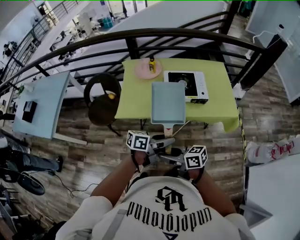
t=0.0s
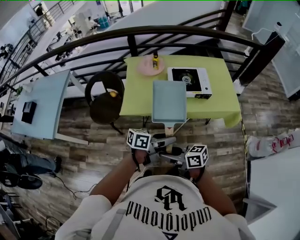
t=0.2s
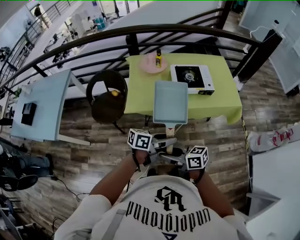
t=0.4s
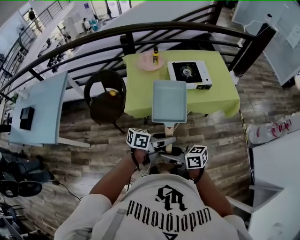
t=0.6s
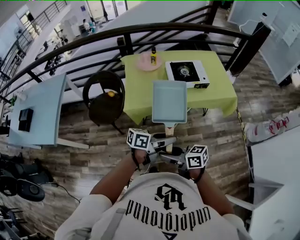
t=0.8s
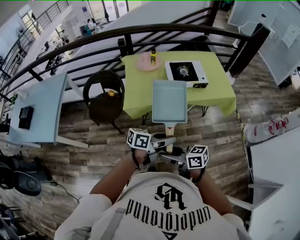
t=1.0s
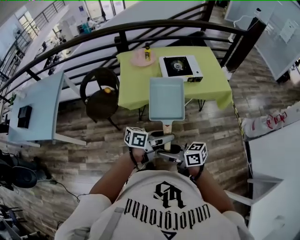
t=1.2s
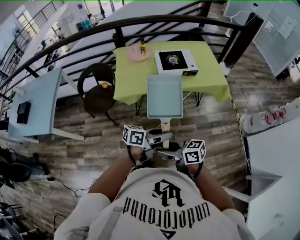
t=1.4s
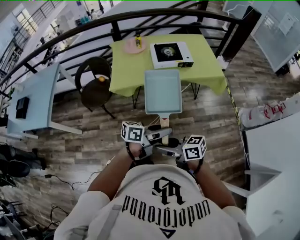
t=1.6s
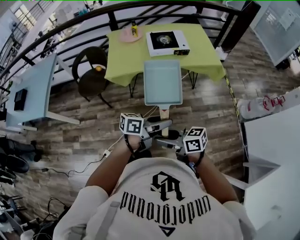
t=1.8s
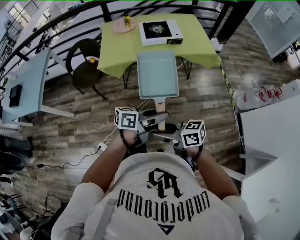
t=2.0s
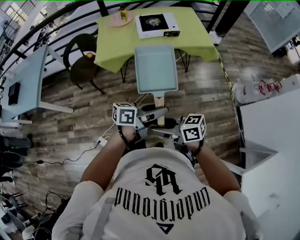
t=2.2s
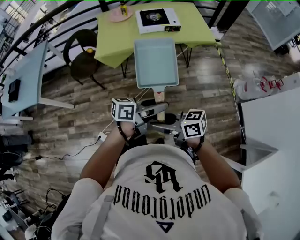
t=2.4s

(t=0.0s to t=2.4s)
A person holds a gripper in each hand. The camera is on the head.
t=0.0s - t=1.2s: The left gripper ends up roughly 20 cm from where it was. The right gripper moves approximately 20 cm.
t=1.2s - t=2.4s: The left gripper moves about 20 cm. Meanwhile the right gripper changes place by approximately 20 cm.

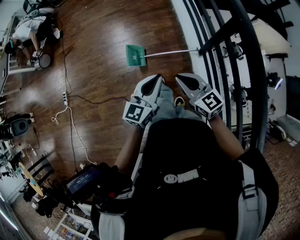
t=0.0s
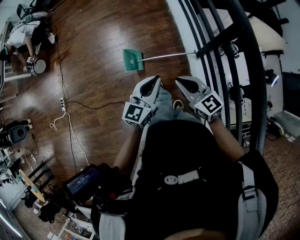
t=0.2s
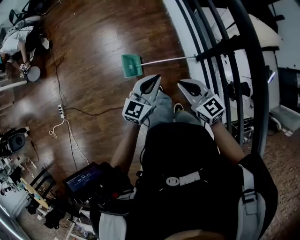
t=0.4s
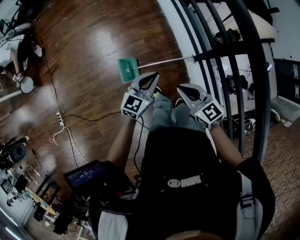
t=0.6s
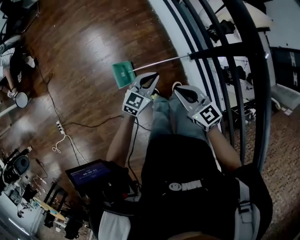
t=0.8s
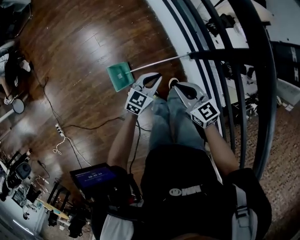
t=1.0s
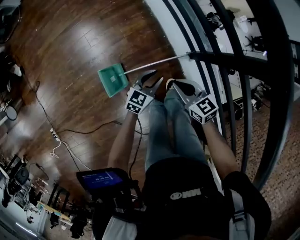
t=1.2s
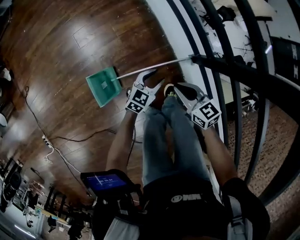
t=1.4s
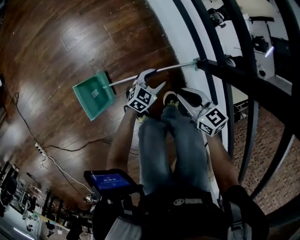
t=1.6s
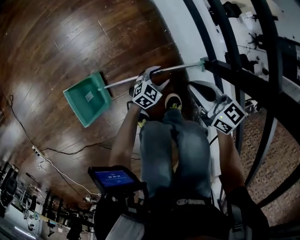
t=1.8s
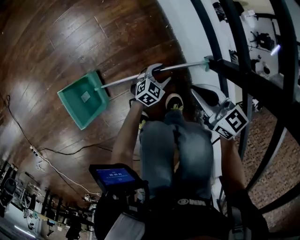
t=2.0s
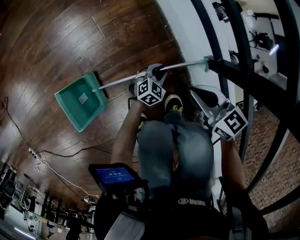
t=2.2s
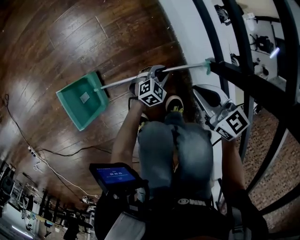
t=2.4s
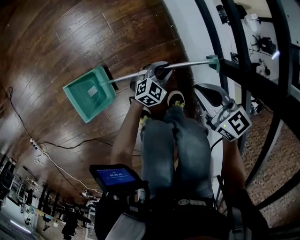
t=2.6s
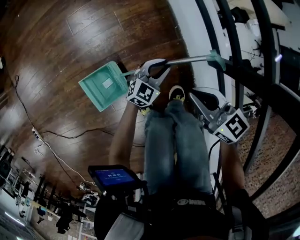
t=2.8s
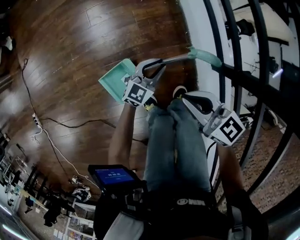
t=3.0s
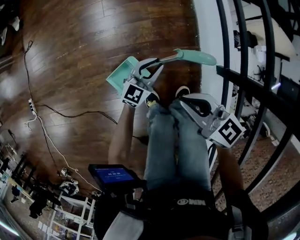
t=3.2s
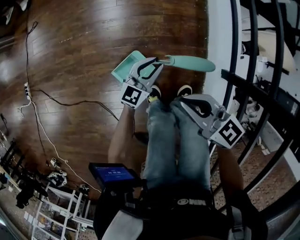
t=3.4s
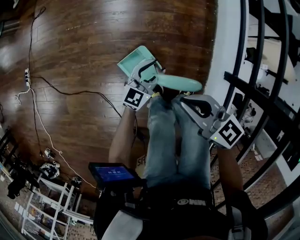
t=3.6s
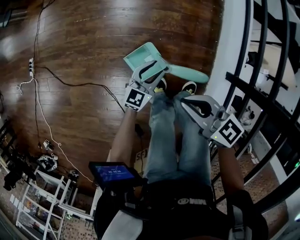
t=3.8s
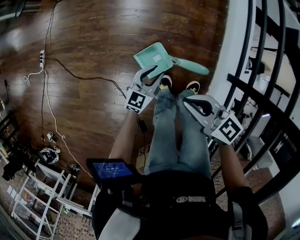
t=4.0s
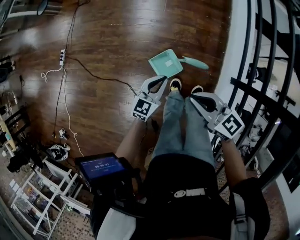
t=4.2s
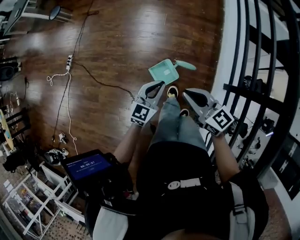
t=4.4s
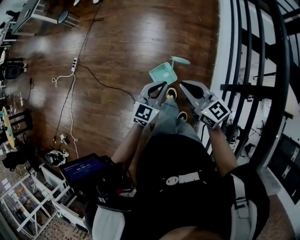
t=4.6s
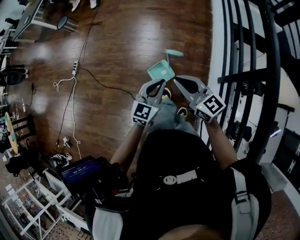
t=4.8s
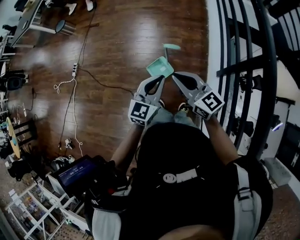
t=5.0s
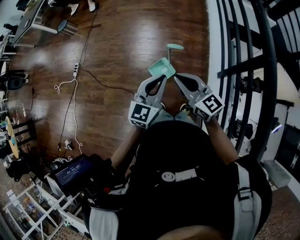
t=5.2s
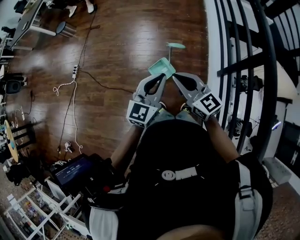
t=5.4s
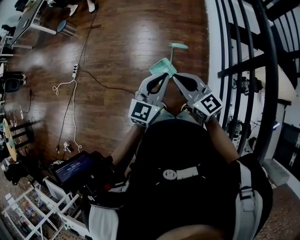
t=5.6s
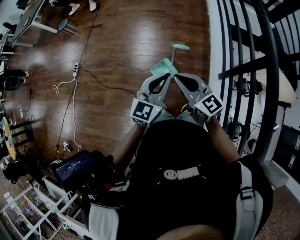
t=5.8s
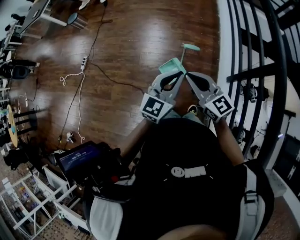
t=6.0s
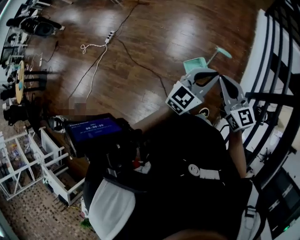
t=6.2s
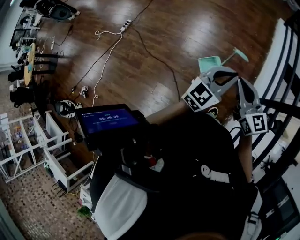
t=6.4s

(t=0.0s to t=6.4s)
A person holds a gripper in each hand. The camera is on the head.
t=0.0s - t=1.6s: Both grippers move downward and forward, some 60 cm. The left gripper rotates approximately 50 degrees, and opens its fingers. Meanwhile the right gripper changes its angle by roughly 30 degrees.
t=1.6s - t=3.2s: The right gripper heads upward, covering about 15 cm, and swivels approximately 30 degrees. Meanwhile the left gripper shifts by approximately 20 cm, turns by some 30 degrees, and closes.
t=3.2s - t=4.8s: The right gripper goes roughly 35 cm upward and to the left; the left gripper moves upward, backward and to the left, roughly 50 cm, and changes its angle by about 20 degrees.
t=4.8s - t=6.4s: The left gripper shifts roughly 10 cm upward, while the right gripper ends up approximately 5 cm from where it was.

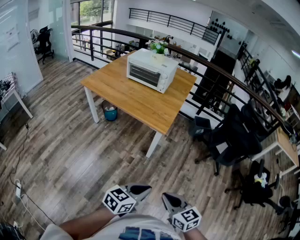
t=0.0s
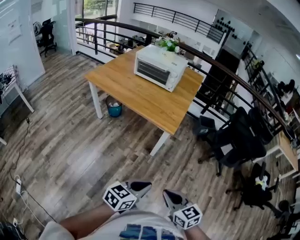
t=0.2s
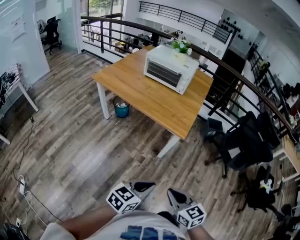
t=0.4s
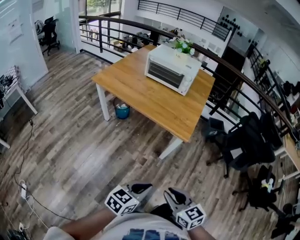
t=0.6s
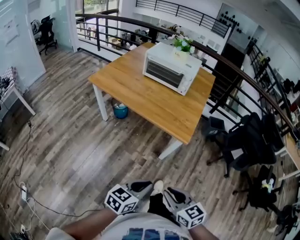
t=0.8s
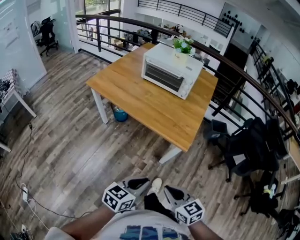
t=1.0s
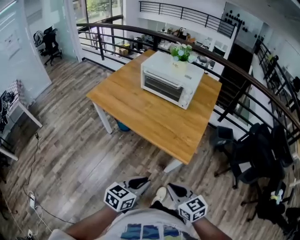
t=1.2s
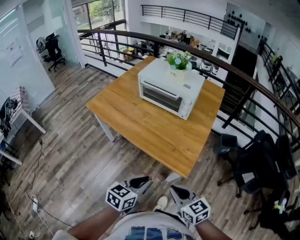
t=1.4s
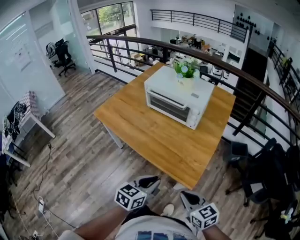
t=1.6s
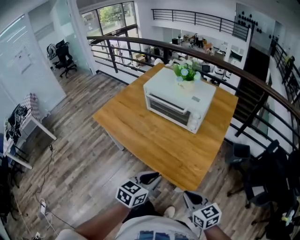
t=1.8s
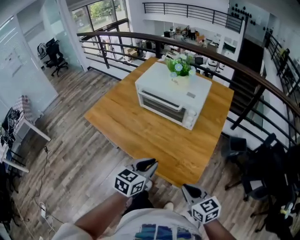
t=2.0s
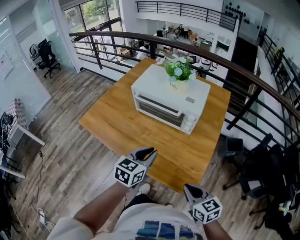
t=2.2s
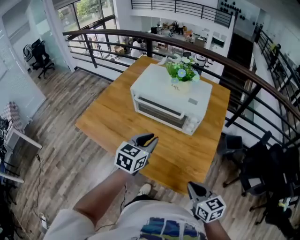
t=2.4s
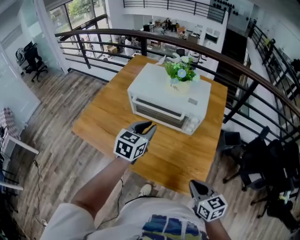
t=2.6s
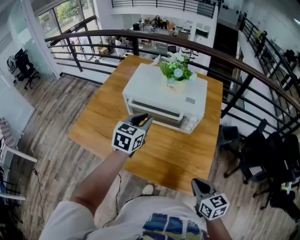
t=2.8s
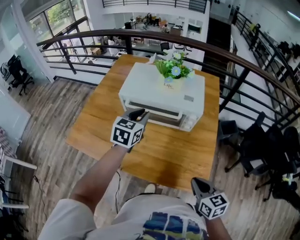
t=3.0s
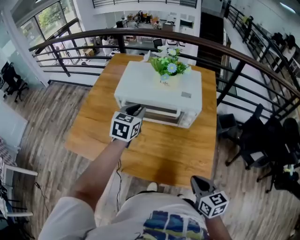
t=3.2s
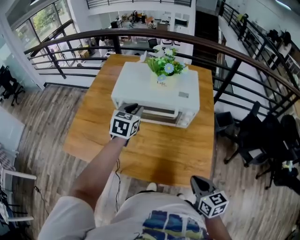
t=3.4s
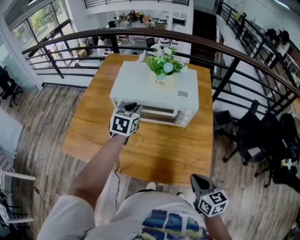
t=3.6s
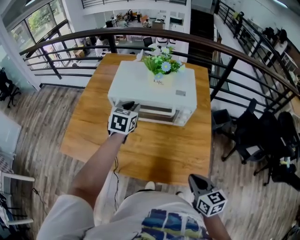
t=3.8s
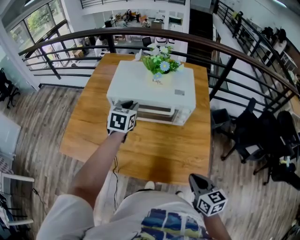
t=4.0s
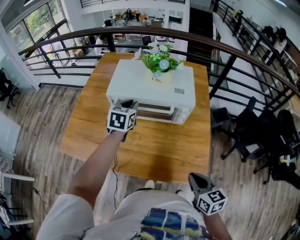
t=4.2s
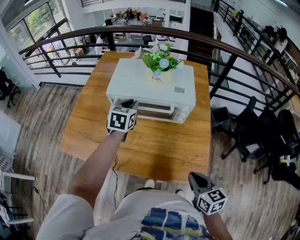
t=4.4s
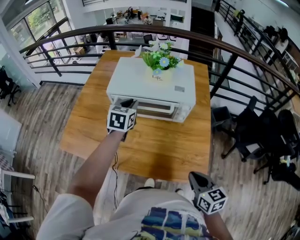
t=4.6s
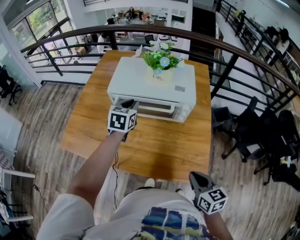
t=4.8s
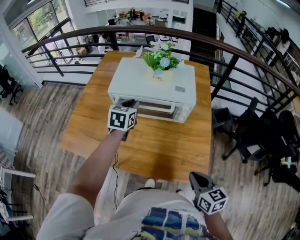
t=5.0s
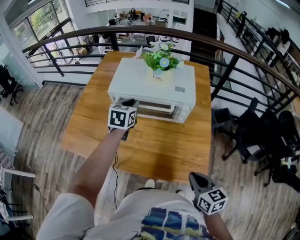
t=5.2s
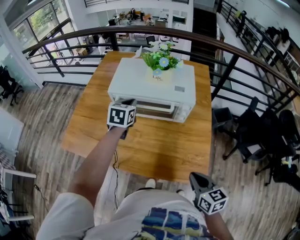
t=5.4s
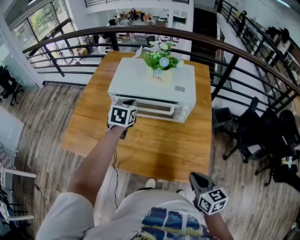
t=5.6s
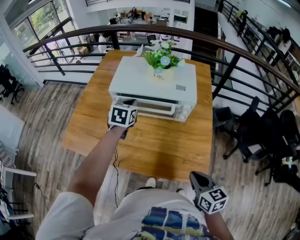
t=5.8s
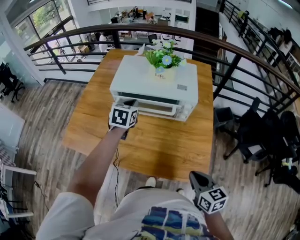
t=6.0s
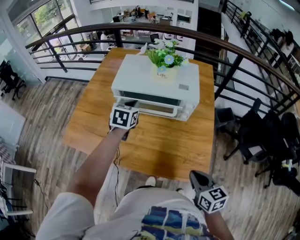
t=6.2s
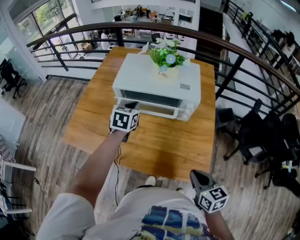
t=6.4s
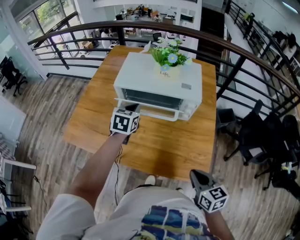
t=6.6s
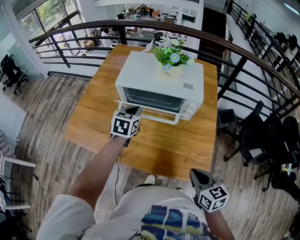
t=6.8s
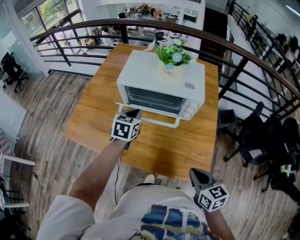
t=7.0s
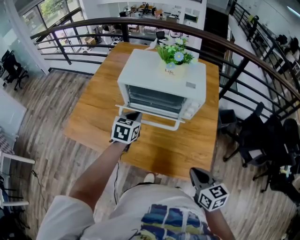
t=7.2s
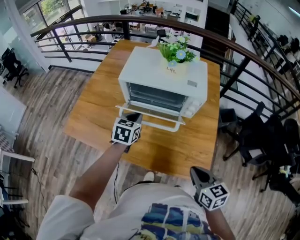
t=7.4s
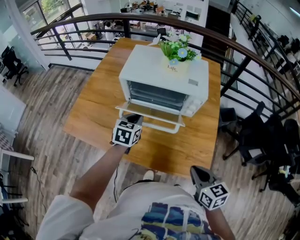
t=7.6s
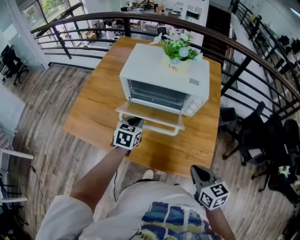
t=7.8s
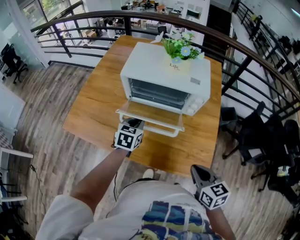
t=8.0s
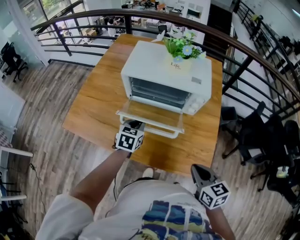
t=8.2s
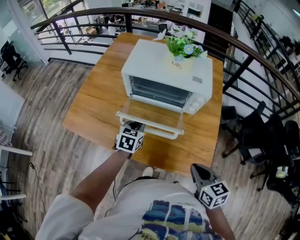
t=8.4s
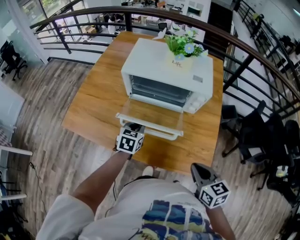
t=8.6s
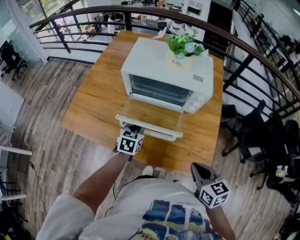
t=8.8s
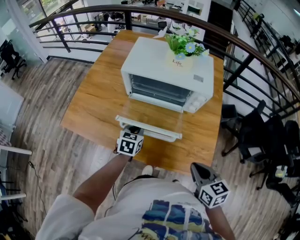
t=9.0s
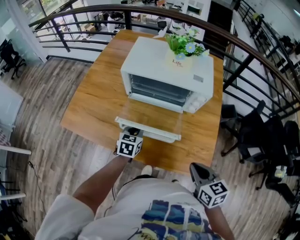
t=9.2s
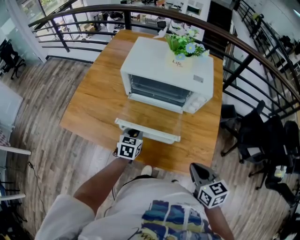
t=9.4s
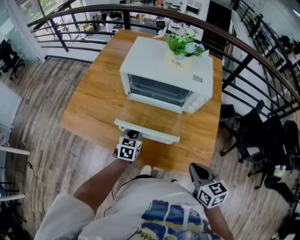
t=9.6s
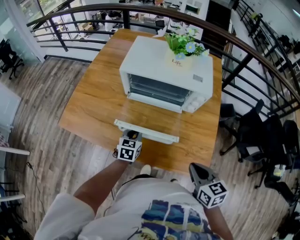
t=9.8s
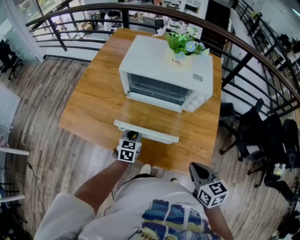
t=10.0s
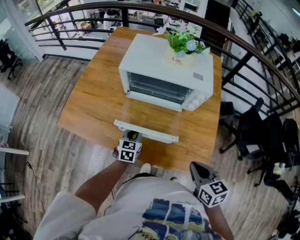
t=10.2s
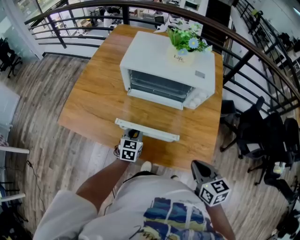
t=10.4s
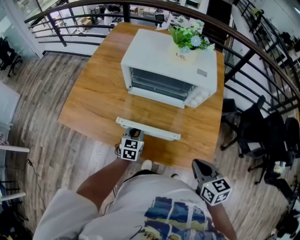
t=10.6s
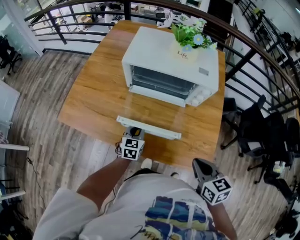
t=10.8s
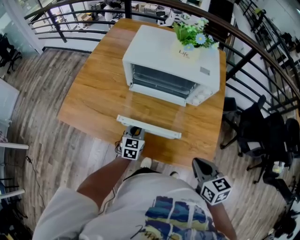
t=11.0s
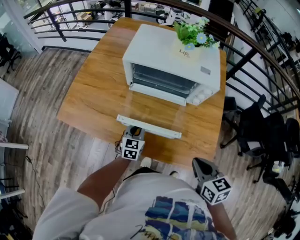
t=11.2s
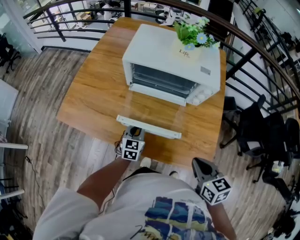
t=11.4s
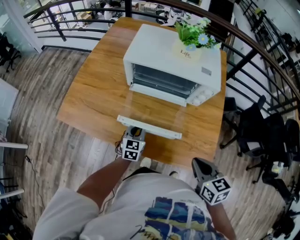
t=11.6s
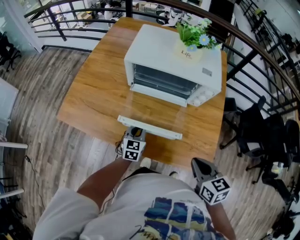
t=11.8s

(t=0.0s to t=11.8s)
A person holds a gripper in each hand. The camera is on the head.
t=0.0s - t=1.4s: Both grippers are carried forward, approximately 40 cm.
t=1.4s - t=3.0s: The right gripper is displaced forward by roughly 25 cm, and turns by some 30 degrees, while the left gripper moves forward, about 50 cm, and rotates approximately 20 degrees.
t=3.0s - t=4.4s: The left gripper shifts about 5 cm forward.
t=4.4s - t=6.0s: The grippers stay close to where they were, moving slightly.
t=6.0s - t=7.4s: The left gripper goes approximately 10 cm backward and downward.
t=7.4s - t=8.8s: The left gripper heads downward and backward, covering roughly 10 cm.
t=8.8s - t=10.4s: The left gripper moves downward, roughly 5 cm.
t=10.4s - t=11.8s: The grippers move only a little.

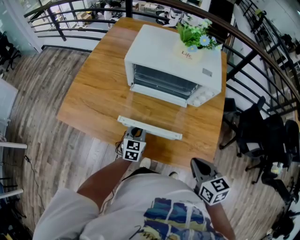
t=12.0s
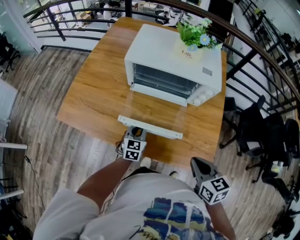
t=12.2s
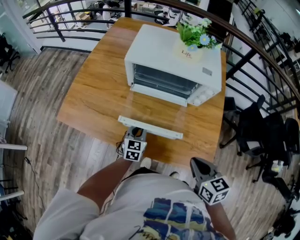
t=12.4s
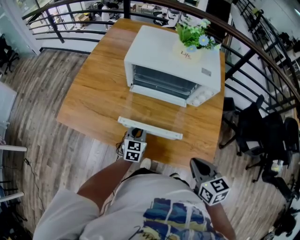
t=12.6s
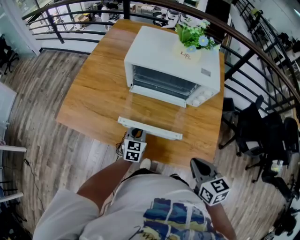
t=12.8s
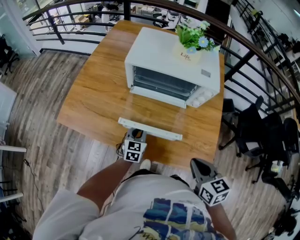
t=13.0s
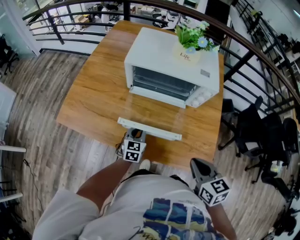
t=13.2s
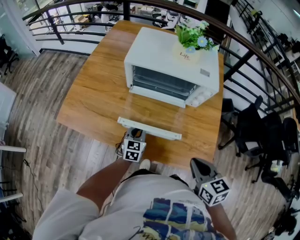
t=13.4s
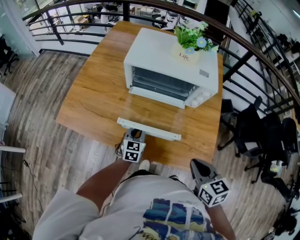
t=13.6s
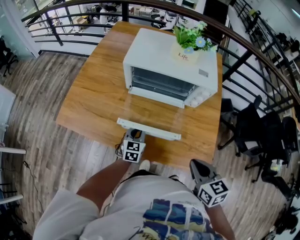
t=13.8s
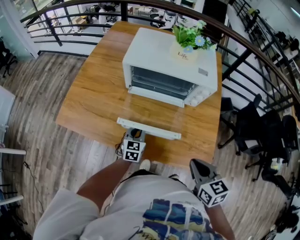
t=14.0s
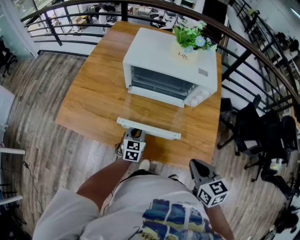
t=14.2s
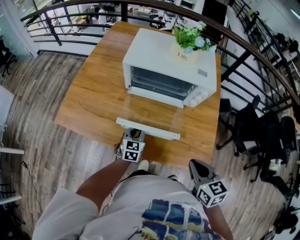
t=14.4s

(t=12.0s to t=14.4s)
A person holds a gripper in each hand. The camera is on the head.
t=12.0s - t=13.2s: The grippers make only small movements.
t=13.2s - t=14.4s: The two grippers keep their place.
